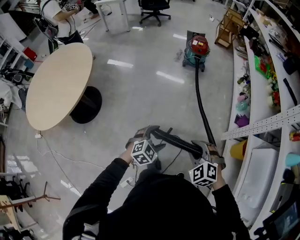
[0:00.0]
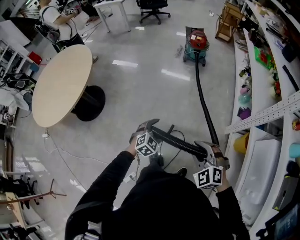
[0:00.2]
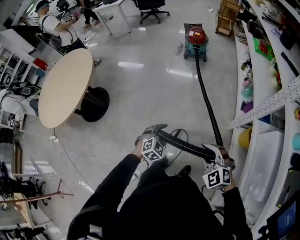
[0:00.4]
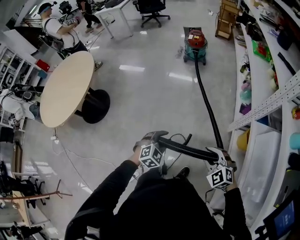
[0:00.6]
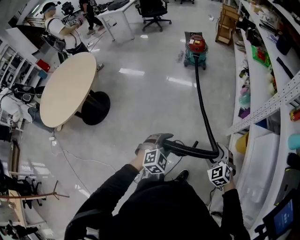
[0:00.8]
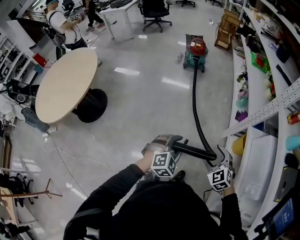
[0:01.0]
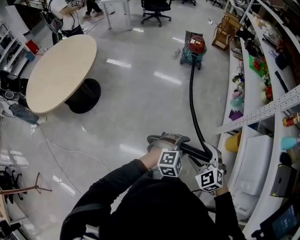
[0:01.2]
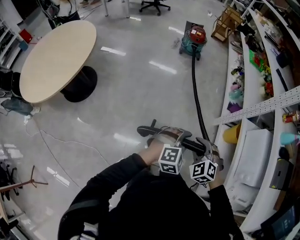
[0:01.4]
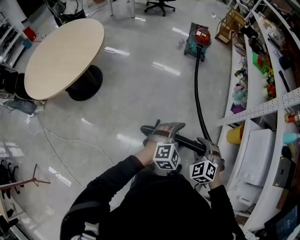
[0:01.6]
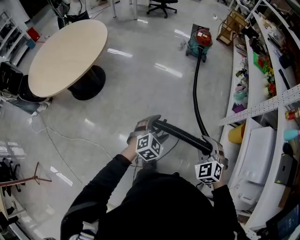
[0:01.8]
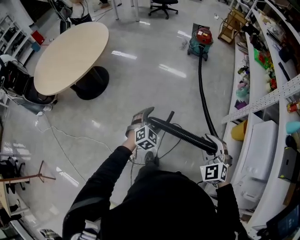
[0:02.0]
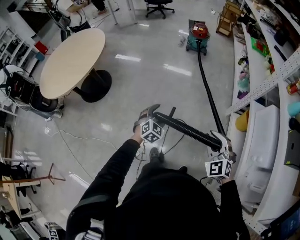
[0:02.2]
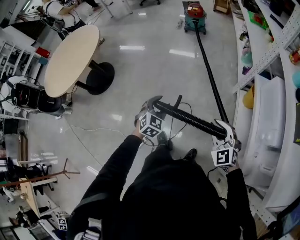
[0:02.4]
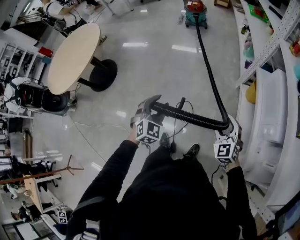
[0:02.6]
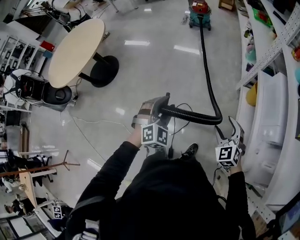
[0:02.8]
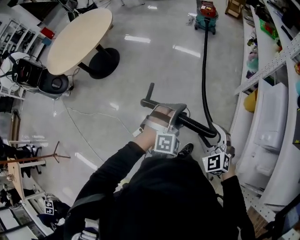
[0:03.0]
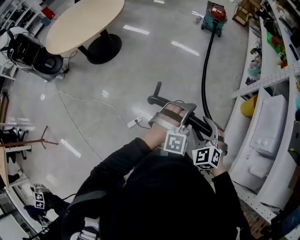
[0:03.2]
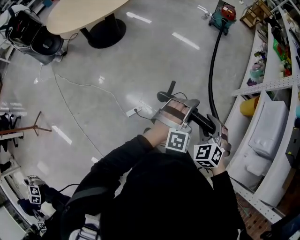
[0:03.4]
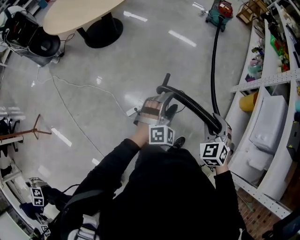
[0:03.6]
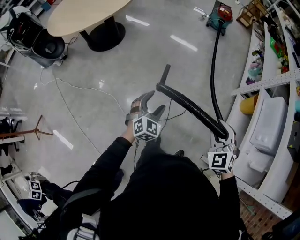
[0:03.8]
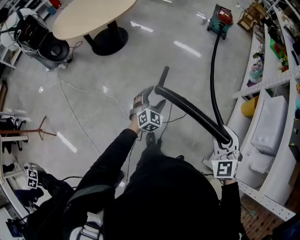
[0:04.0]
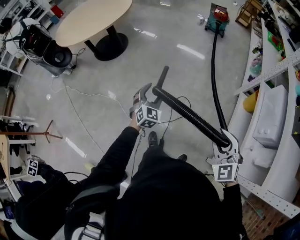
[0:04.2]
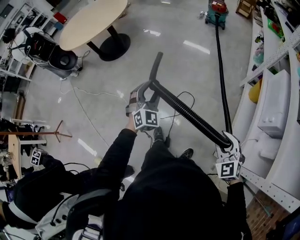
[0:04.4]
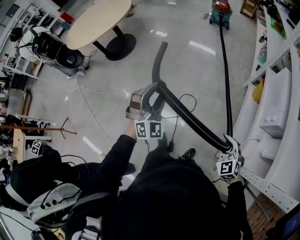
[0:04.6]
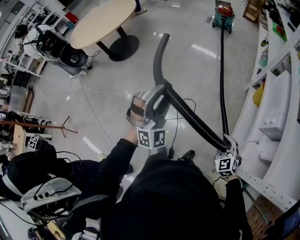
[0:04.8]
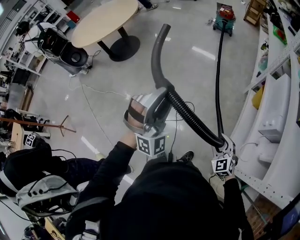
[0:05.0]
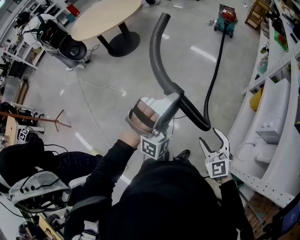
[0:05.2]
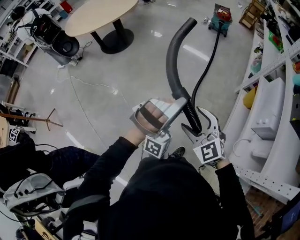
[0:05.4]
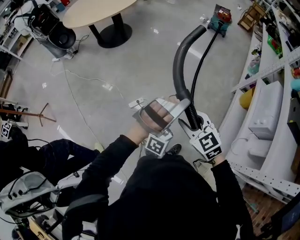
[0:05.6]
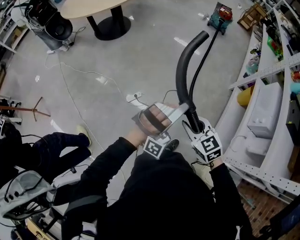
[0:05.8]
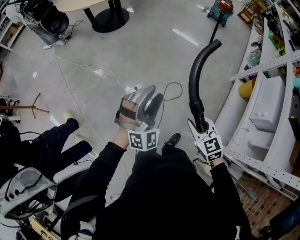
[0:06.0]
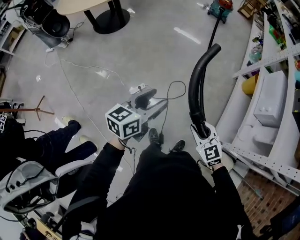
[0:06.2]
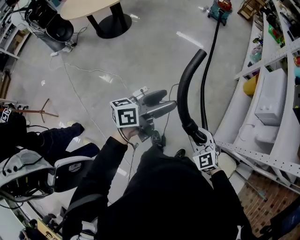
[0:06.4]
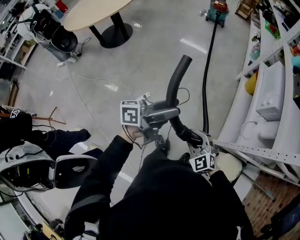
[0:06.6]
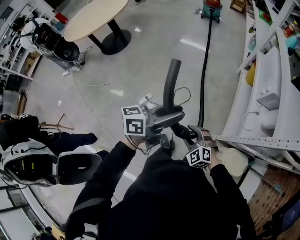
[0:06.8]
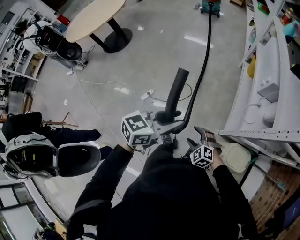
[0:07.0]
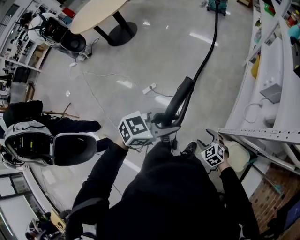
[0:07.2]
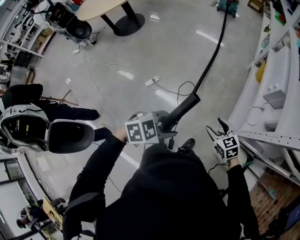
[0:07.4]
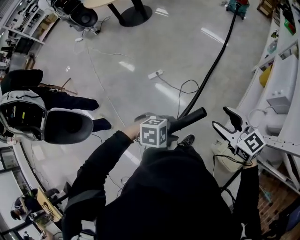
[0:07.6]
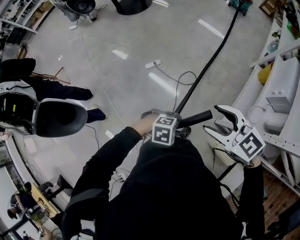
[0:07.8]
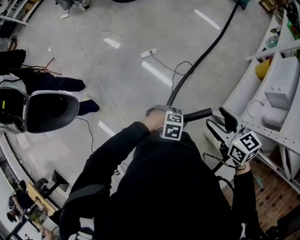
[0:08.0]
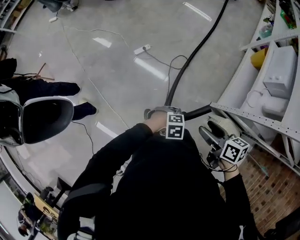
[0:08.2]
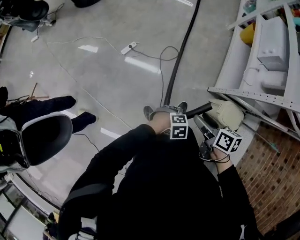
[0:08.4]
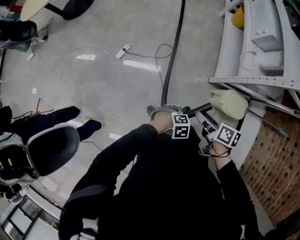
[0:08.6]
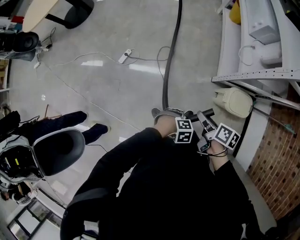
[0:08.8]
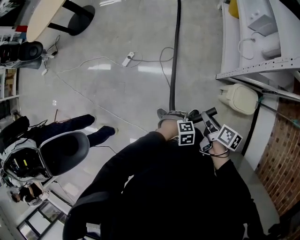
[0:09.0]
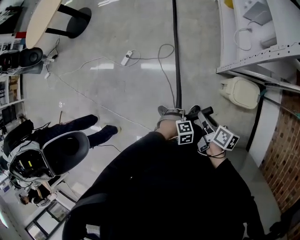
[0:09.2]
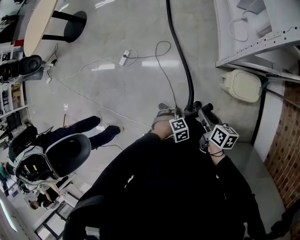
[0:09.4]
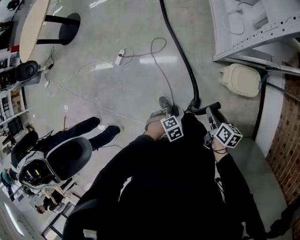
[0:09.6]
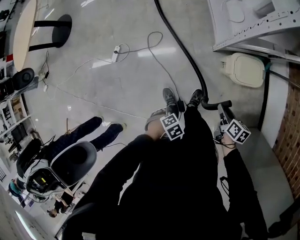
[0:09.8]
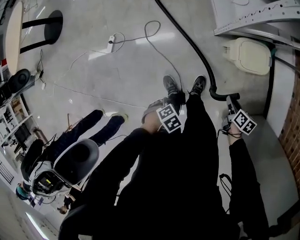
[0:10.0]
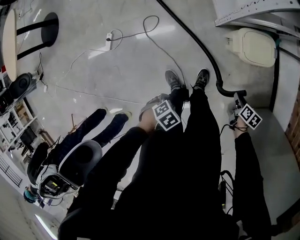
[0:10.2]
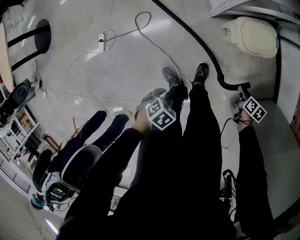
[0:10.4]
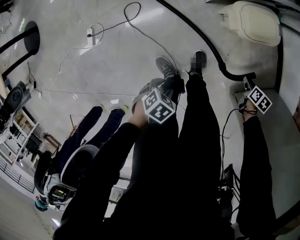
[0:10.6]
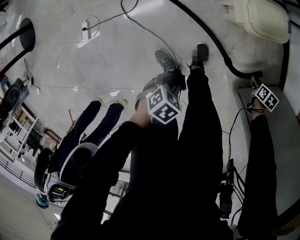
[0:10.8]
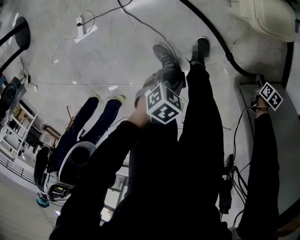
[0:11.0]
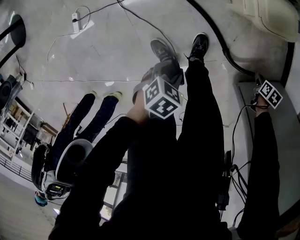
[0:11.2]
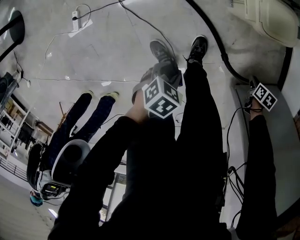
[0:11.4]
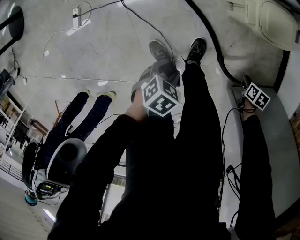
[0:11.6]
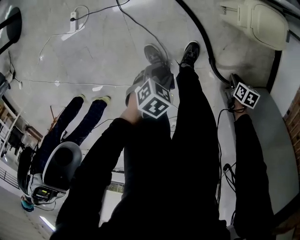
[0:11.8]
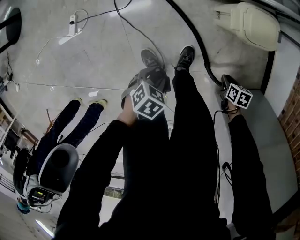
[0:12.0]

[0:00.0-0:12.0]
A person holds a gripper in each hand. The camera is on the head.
0:00.0 to 0:01.6: The left gripper heads backward and upward, covering some 20 cm, moves roughly 20 cm to the right and comes back, and closes, then opens again. The right gripper goes approximately 20 cm backward, goes to the right and returns, some 25 cm each way, and opens, then closes once more.
0:01.6 to 0:03.0: The grippers both shift backward and to the right by about 25 cm. The left gripper rotates some 30 degrees, and closes its fingers; the right gripper rotates some 20 degrees, and opens.
0:03.0 to 0:04.4: The left gripper moves to the left and backward, approximately 20 cm, changes its angle by some 40 degrees, and opens and closes again. Meanwhile the right gripper moves backward, approximately 20 cm, reaches approximately 15 cm to the left, then returns, and closes up.
0:04.4 to 0:06.0: The right gripper moves to the left, about 25 cm, swivels roughly 20 degrees, and opens, then closes again, while the left gripper travels backward and to the left by some 20 cm.
0:06.0 to 0:07.6: The right gripper shifts by roughly 25 cm, swivels about 30 degrees, and opens up; the left gripper shifts by approximately 40 cm, and points its fingers some 40 degrees further downward.
0:07.6 to 0:09.0: The left gripper travels downward by approximately 25 cm, and turns by about 30 degrees; the right gripper changes place by roughly 35 cm, rolls clockwise, seen from behind, by some 80 degrees, and closes its fingers.
0:09.0 to 0:10.4: The left gripper goes roughly 15 cm downward, and turns by some 20 degrees, while the right gripper goes approximately 35 cm downward, and turns by roughly 30 degrees.
0:10.4 to 0:12.0: The grippers both shift downward by about 10 cm. The right gripper turns by approximately 20 degrees.

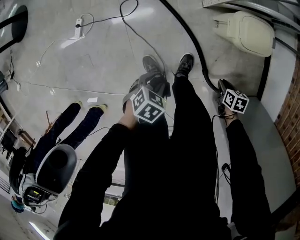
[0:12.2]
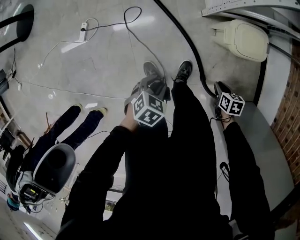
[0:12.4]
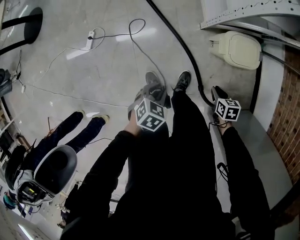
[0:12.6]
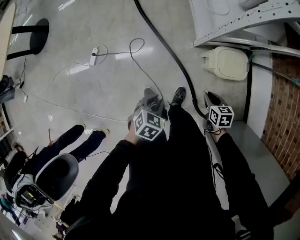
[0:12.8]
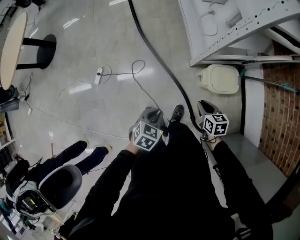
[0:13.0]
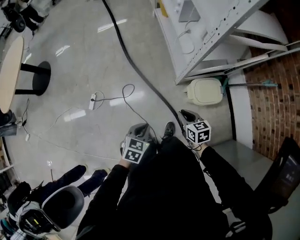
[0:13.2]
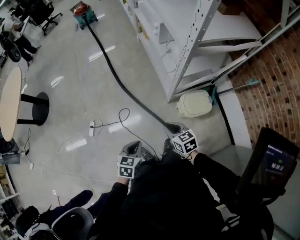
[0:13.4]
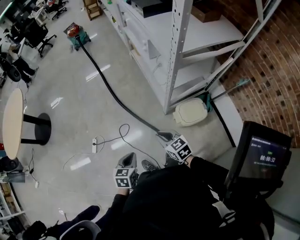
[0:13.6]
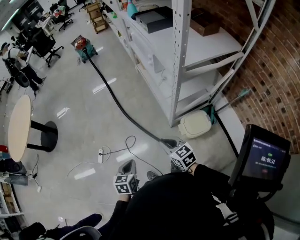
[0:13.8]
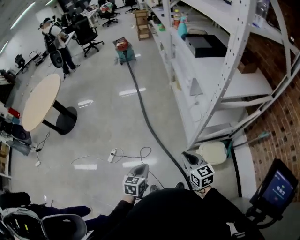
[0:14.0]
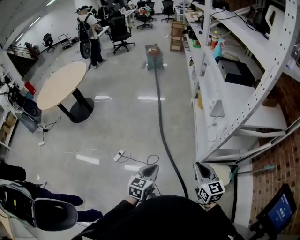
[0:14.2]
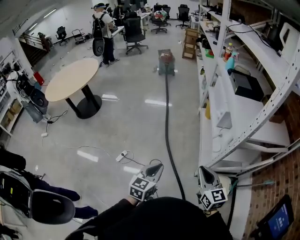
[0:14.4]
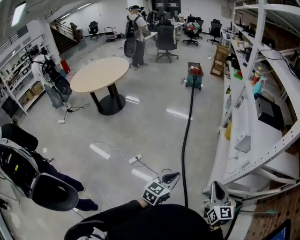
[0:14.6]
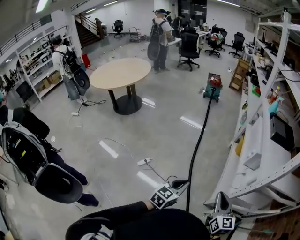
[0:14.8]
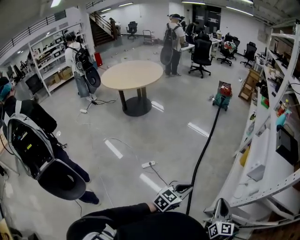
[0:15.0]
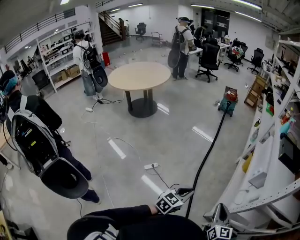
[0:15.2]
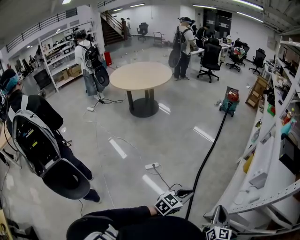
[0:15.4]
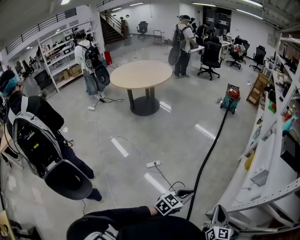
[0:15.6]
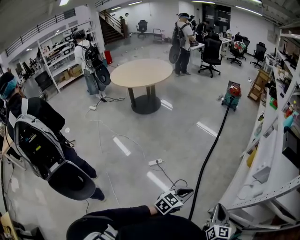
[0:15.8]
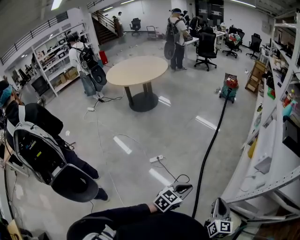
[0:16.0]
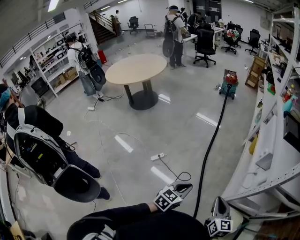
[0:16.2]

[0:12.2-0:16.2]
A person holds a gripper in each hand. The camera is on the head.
0:12.2 to 0:13.6: The two grippers go about 40 cm upward. The left gripper turns by approximately 40 degrees, and closes. The right gripper tilts its fingers about 40 degrees upward.
0:13.6 to 0:14.8: The right gripper travels upward by approximately 20 cm, and changes its angle by about 30 degrees; the left gripper goes approximately 25 cm upward, to the left and forward, and swivels about 30 degrees.
0:14.8 to 0:16.2: The right gripper goes approximately 5 cm downward. Meanwhile the left gripper changes place by about 5 cm.

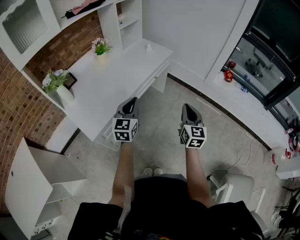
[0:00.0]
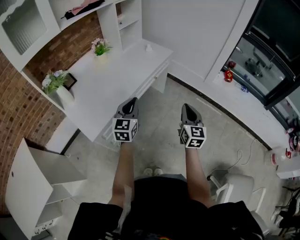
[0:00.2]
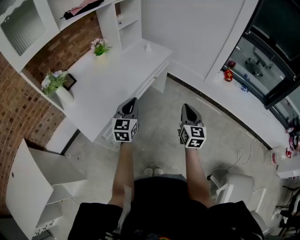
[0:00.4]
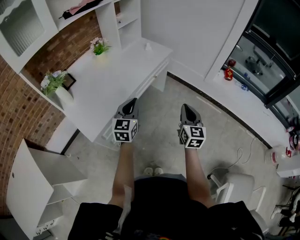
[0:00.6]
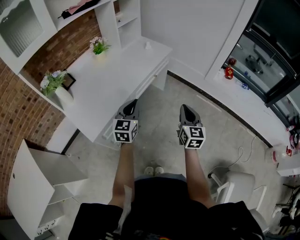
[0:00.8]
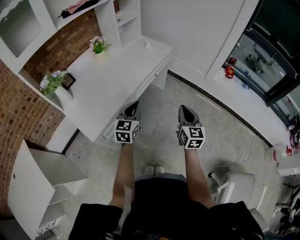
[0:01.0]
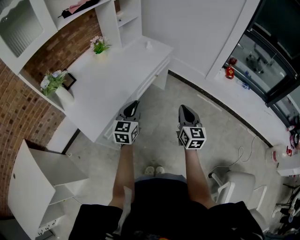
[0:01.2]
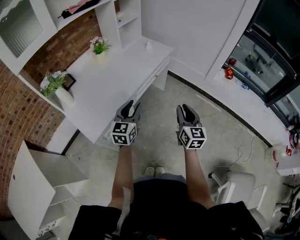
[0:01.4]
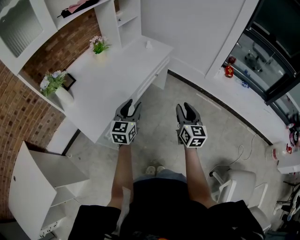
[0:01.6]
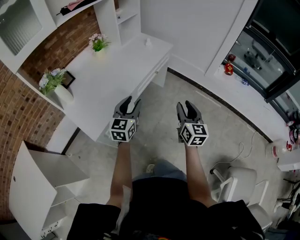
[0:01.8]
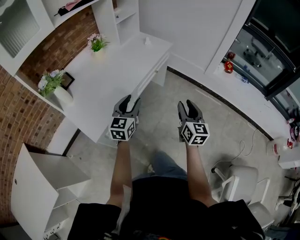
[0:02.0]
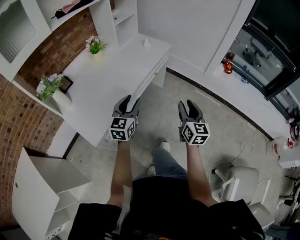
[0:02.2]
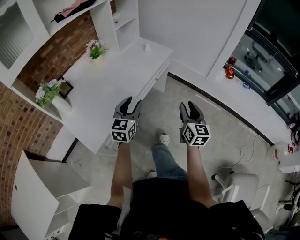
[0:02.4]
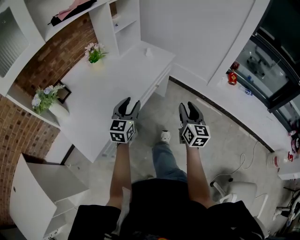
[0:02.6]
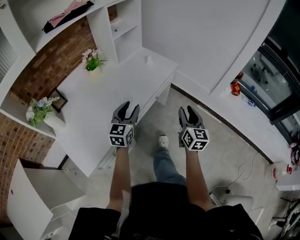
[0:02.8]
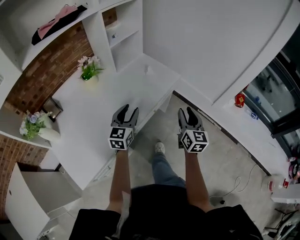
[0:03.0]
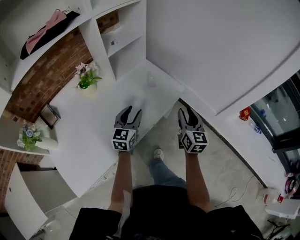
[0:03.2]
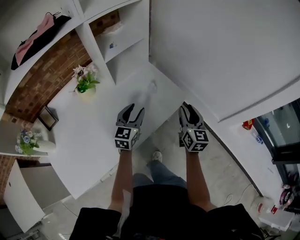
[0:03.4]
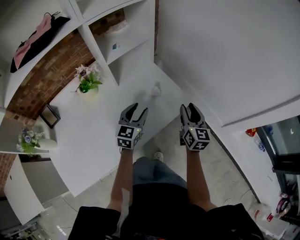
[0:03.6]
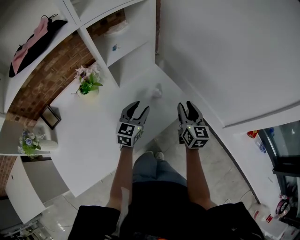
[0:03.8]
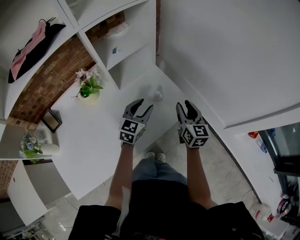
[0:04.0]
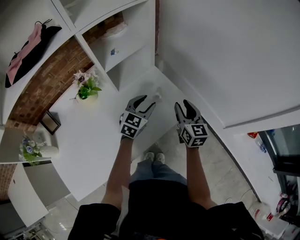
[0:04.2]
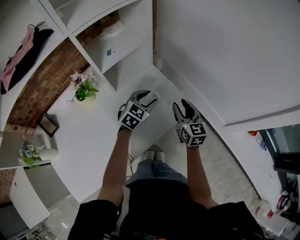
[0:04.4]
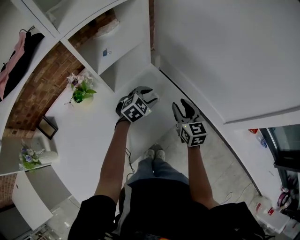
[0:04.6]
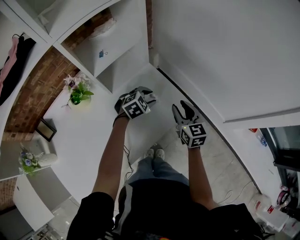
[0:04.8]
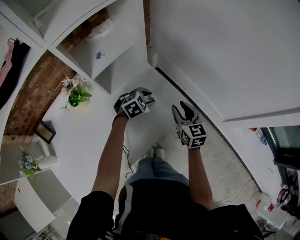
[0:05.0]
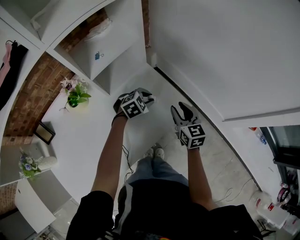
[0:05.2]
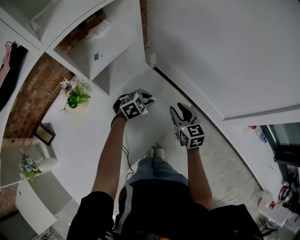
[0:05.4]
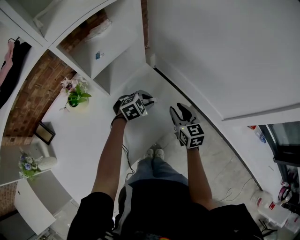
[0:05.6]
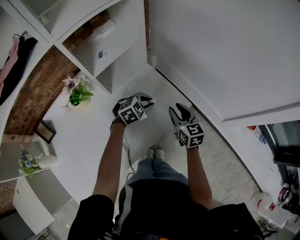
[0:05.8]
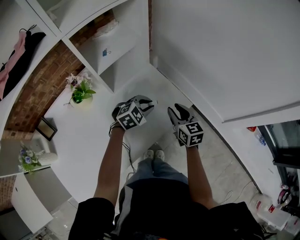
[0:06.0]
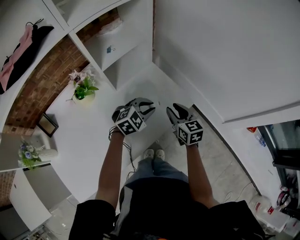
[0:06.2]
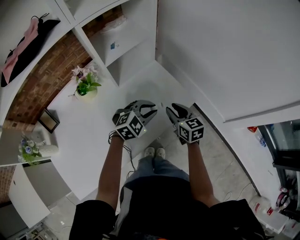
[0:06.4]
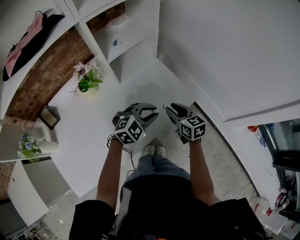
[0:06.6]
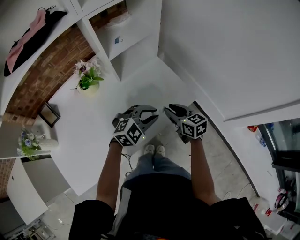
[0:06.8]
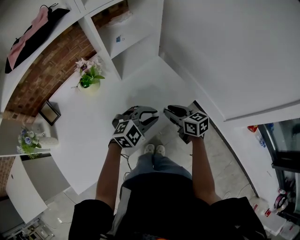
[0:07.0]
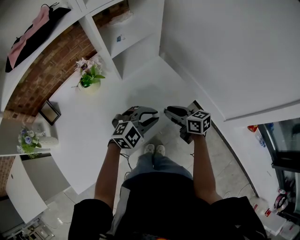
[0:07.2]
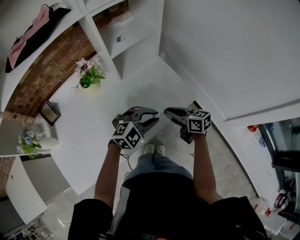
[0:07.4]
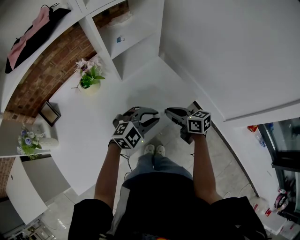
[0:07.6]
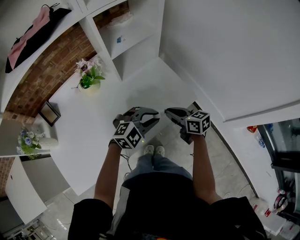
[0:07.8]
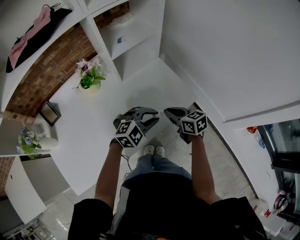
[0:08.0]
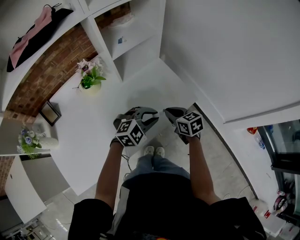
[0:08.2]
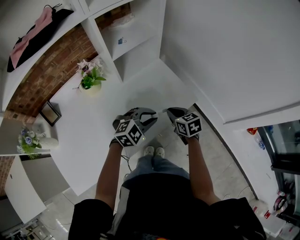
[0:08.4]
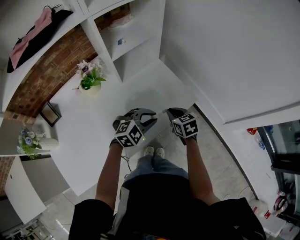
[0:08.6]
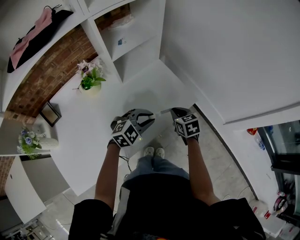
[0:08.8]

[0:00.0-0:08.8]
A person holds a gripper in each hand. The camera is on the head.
0:00.0 to 0:01.4: The left gripper opens.
0:01.4 to 0:03.0: The grippers both shift forward by roughly 30 cm.
0:03.0 to 0:04.4: Both grippers travel together forward, about 30 cm. The left gripper turns by approximately 30 degrees. Meanwhile the right gripper changes its angle by approximately 20 degrees.
0:04.4 to 0:05.8: The left gripper travels downward by some 5 cm, and swivels roughly 30 degrees.
0:05.8 to 0:07.4: The right gripper heads backward and to the left, covering roughly 10 cm, swivels roughly 40 degrees, and closes up, while the left gripper heads backward and upward, covering approximately 20 cm.
0:07.4 to 0:08.8: The right gripper shifts by approximately 5 cm, and changes its angle by approximately 40 degrees.
